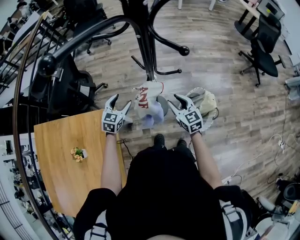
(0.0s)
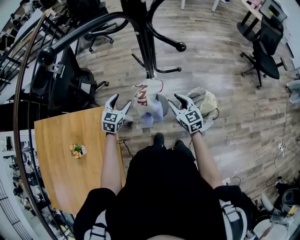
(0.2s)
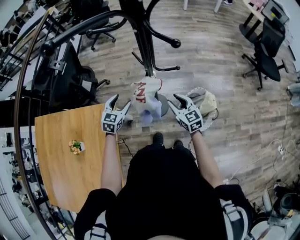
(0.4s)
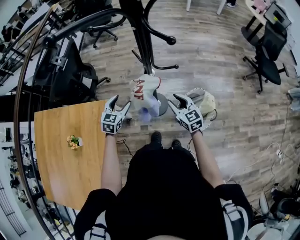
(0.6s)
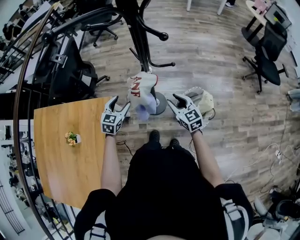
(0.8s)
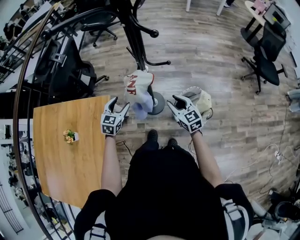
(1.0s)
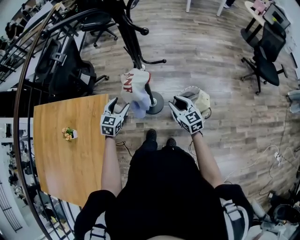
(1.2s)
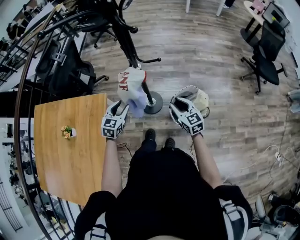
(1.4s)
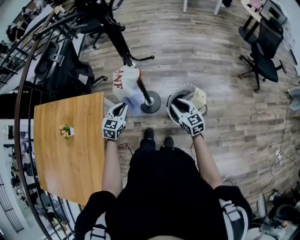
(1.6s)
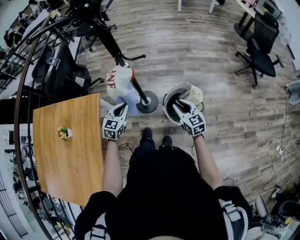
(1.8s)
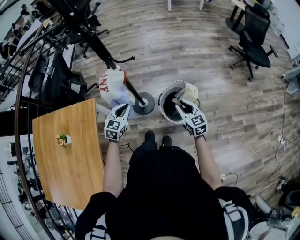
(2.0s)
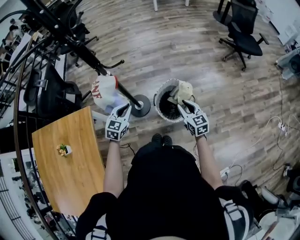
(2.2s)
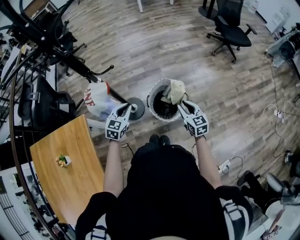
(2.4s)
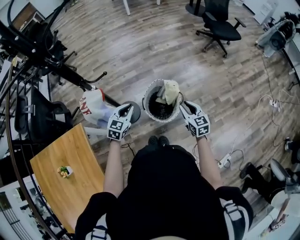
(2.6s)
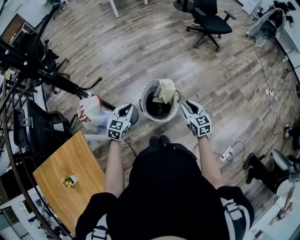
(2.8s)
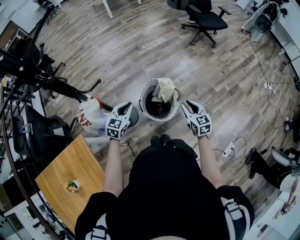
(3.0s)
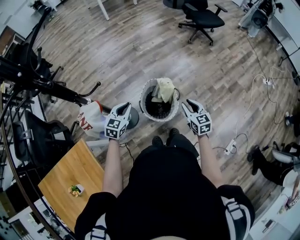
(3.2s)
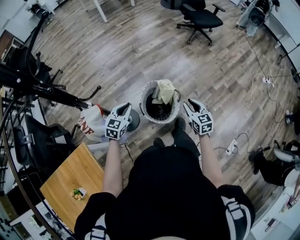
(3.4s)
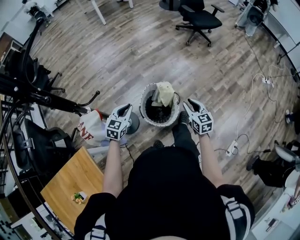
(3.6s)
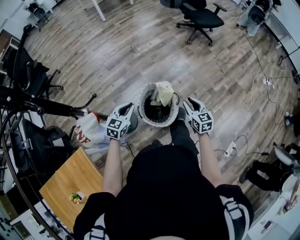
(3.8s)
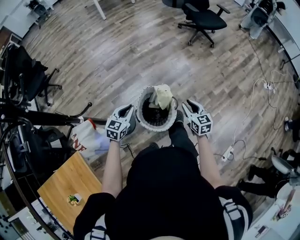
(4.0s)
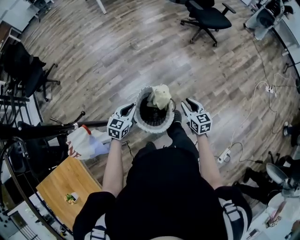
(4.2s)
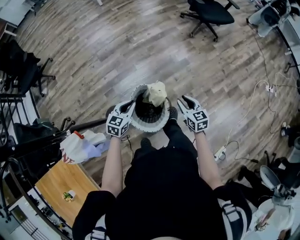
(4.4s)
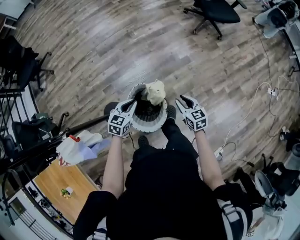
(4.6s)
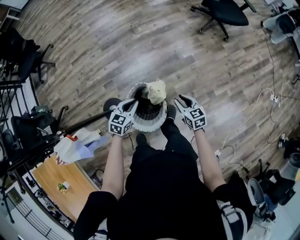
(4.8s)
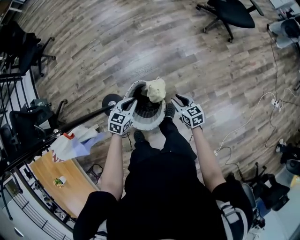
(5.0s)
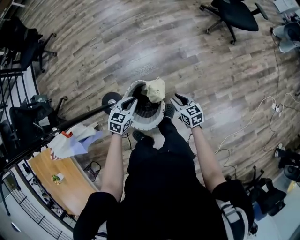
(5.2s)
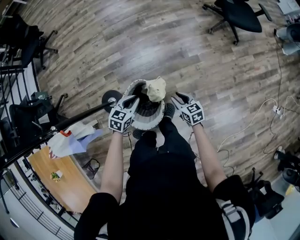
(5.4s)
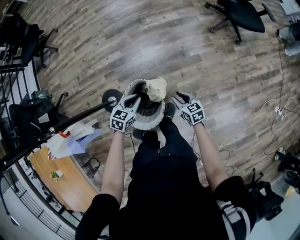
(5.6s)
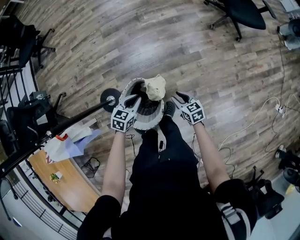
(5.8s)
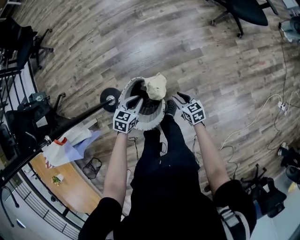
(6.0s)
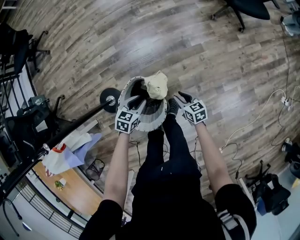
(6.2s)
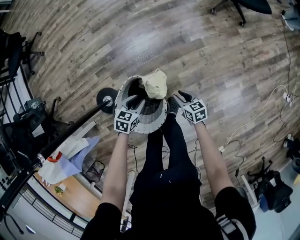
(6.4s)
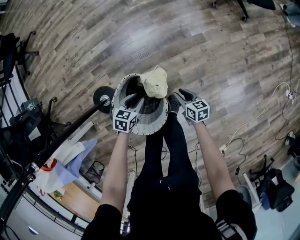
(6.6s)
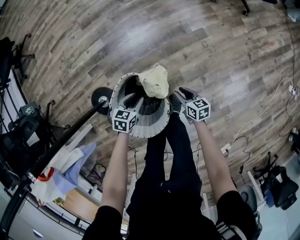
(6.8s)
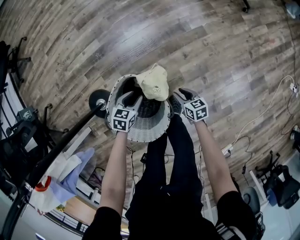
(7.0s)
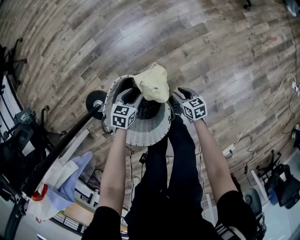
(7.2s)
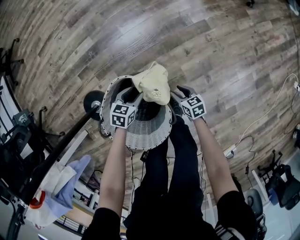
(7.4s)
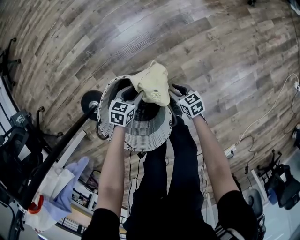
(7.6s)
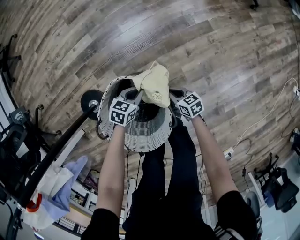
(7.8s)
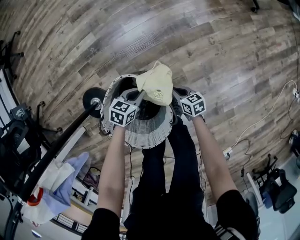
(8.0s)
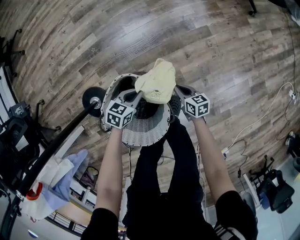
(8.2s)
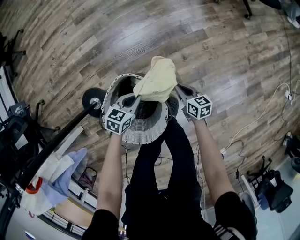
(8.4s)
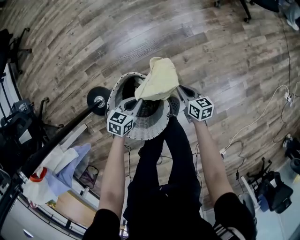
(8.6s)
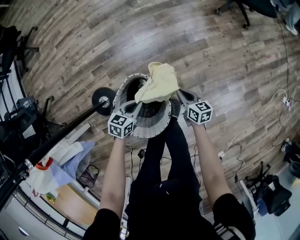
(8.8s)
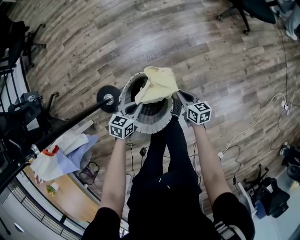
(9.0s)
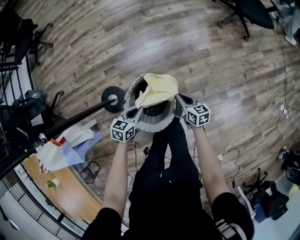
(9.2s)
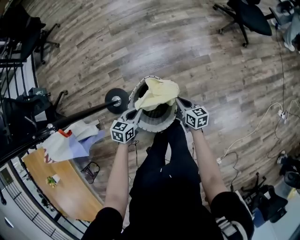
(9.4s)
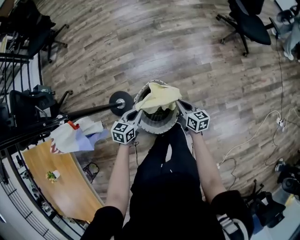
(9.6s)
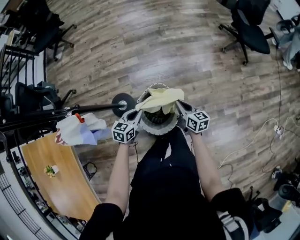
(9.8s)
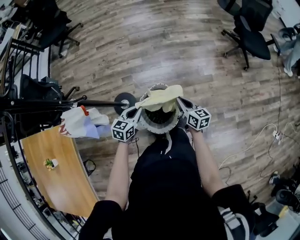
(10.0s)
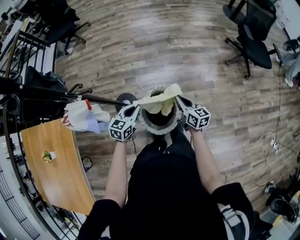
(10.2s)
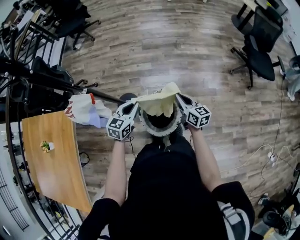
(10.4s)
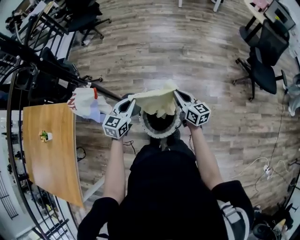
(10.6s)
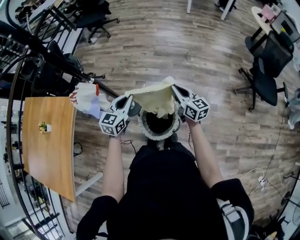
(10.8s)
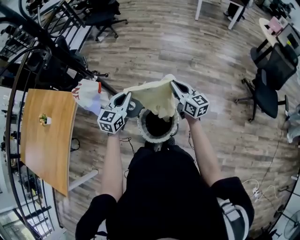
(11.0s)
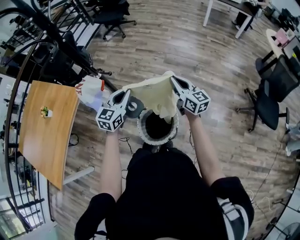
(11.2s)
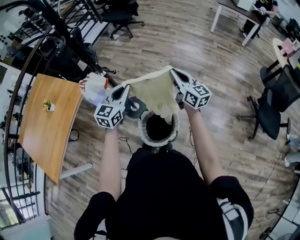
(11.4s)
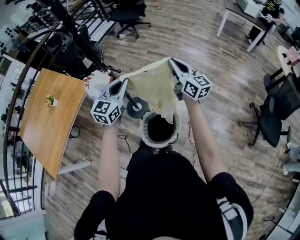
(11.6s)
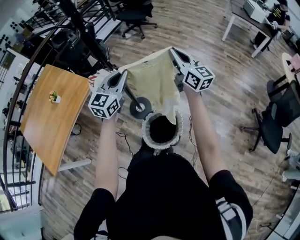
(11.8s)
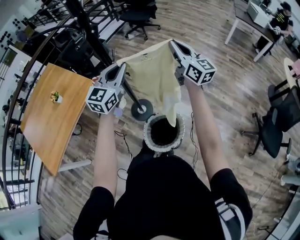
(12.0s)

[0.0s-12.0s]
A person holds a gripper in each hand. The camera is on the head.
0.0s to 1.6s: The right gripper is displaced to the right and backward by about 20 cm, while the left gripper goes some 20 cm backward and to the right, and closes its fingers.
1.6s to 3.0s: The left gripper changes place by approximately 25 cm, and changes its angle by roughly 40 degrees. Meanwhile the right gripper shifts by some 25 cm, and turns by approximately 40 degrees.
3.0s to 4.4s: The left gripper is displaced forward and to the right by about 20 cm, while the right gripper shifts about 20 cm forward.
4.4s to 6.0s: The left gripper heads downward, to the right and forward, covering approximately 20 cm, and swivels roughly 20 degrees; the right gripper travels downward and forward by about 20 cm, and rotates some 30 degrees.
6.0s to 7.6s: Both grippers move downward, about 35 cm. The left gripper opens.
7.6s to 9.0s: The two grippers go approximately 25 cm upward. The right gripper closes up. The left gripper closes.
9.0s to 10.4s: The grippers both shift upward and to the left by roughly 30 cm. The left gripper turns by approximately 30 degrees, while the right gripper swivels roughly 30 degrees.
10.4s to 12.0s: Both grippers move upward, approximately 30 cm. The right gripper changes its angle by about 40 degrees. The left gripper rotates about 40 degrees.

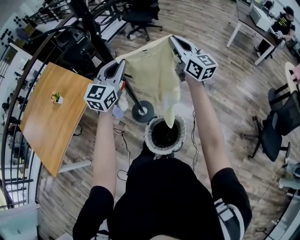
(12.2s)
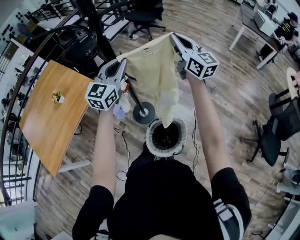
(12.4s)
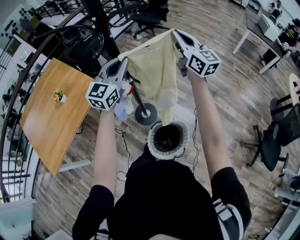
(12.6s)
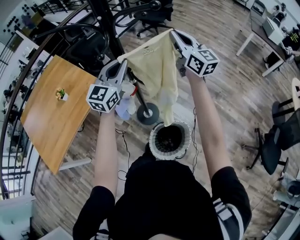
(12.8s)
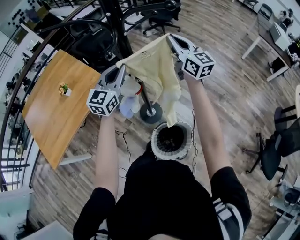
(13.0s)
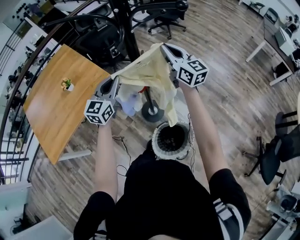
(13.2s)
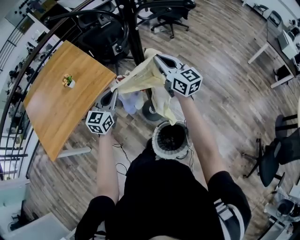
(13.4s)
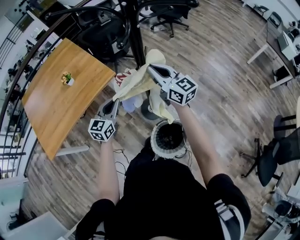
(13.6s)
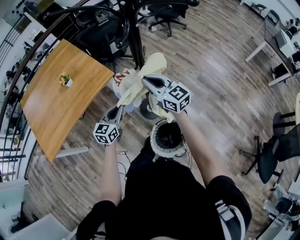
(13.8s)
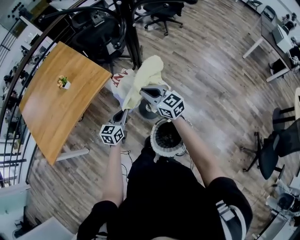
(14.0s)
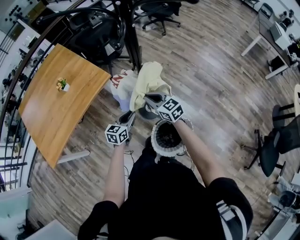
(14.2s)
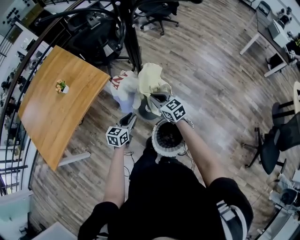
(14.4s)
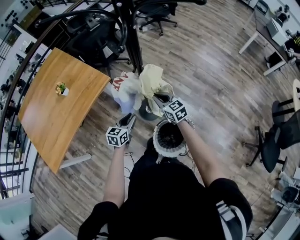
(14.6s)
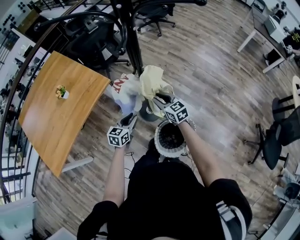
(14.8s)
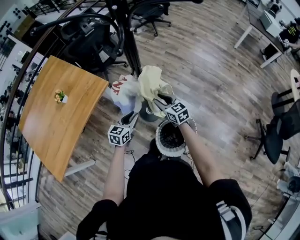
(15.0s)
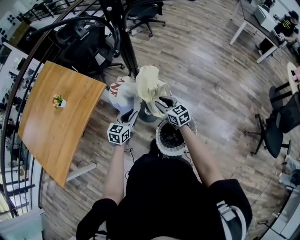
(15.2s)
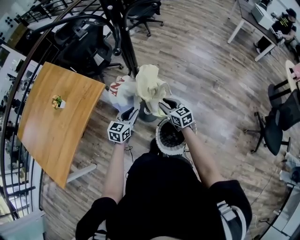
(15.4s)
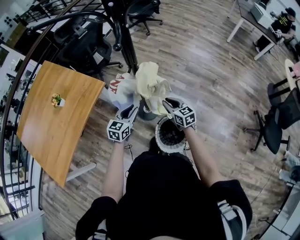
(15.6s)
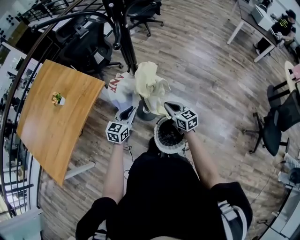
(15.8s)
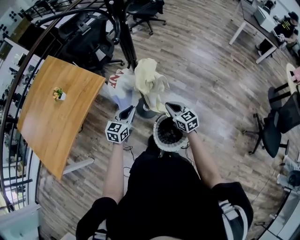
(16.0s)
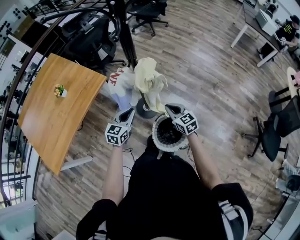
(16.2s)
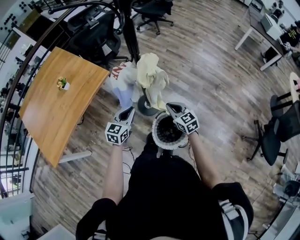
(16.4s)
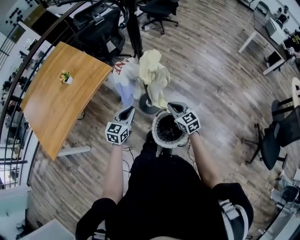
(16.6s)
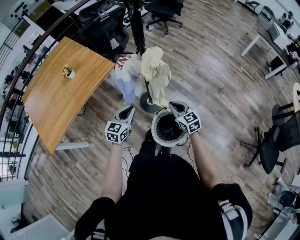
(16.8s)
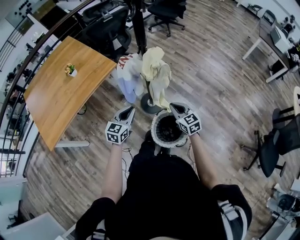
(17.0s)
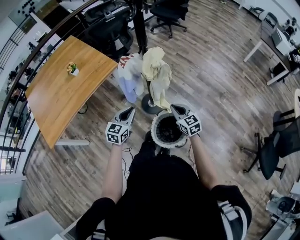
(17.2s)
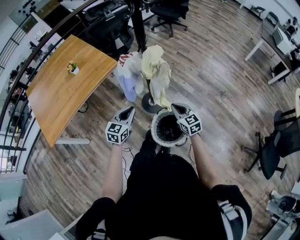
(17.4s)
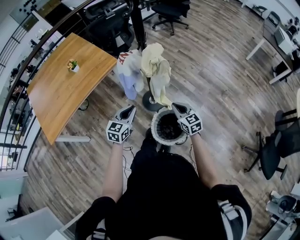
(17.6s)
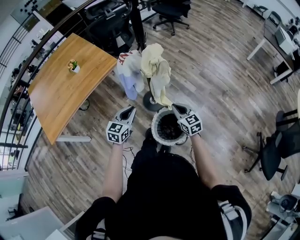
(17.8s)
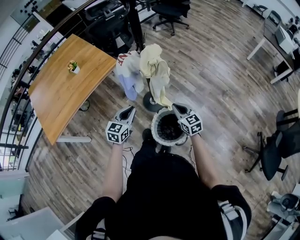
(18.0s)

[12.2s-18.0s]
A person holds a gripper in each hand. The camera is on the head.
12.2s to 13.6s: The grippers both shift to the left and downward by approximately 25 cm. The left gripper turns by approximately 30 degrees, while the right gripper changes its angle by about 30 degrees.
13.6s to 15.0s: The left gripper moves downward, approximately 15 cm, and changes its angle by approximately 20 degrees; the right gripper moves downward, roughly 25 cm, changes its angle by roughly 30 degrees, and opens.
15.0s to 16.6s: The right gripper moves backward and to the right, roughly 15 cm, and closes, while the left gripper is displaced backward and upward by approximately 10 cm.
16.6s to 18.0s: The left gripper travels backward by roughly 5 cm, while the right gripper shifts by some 5 cm.

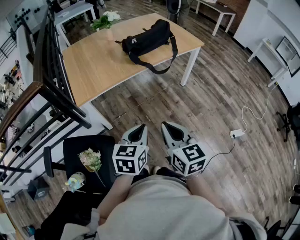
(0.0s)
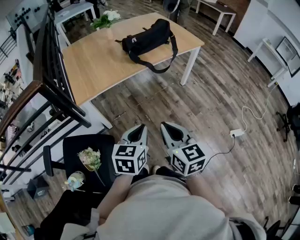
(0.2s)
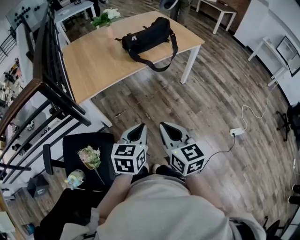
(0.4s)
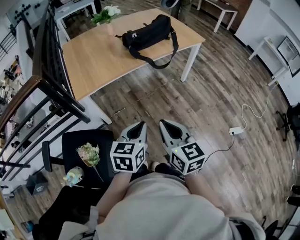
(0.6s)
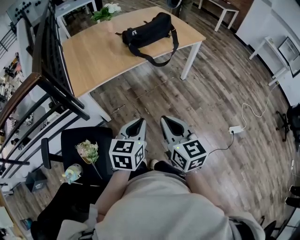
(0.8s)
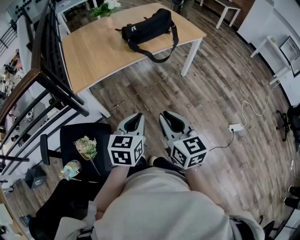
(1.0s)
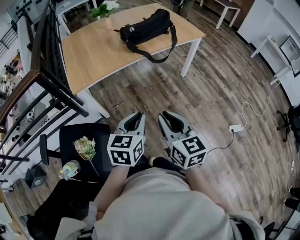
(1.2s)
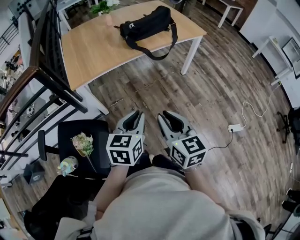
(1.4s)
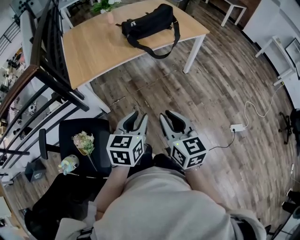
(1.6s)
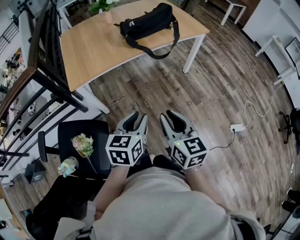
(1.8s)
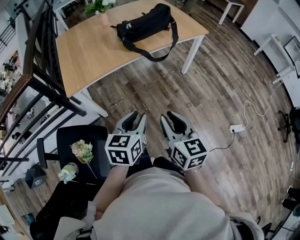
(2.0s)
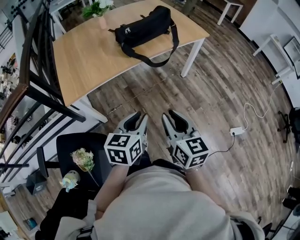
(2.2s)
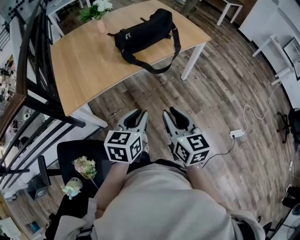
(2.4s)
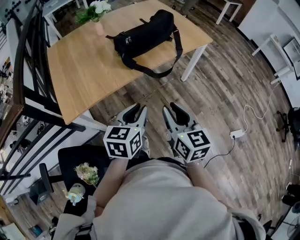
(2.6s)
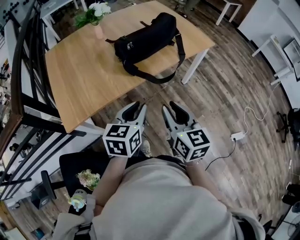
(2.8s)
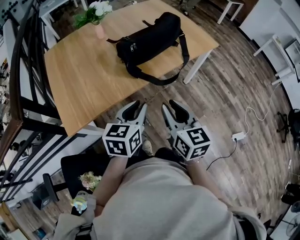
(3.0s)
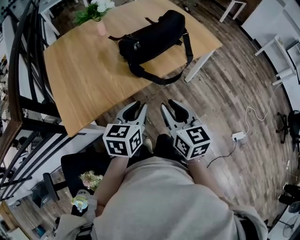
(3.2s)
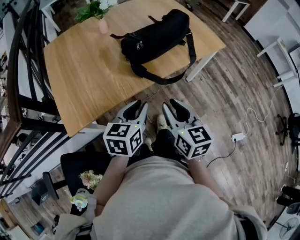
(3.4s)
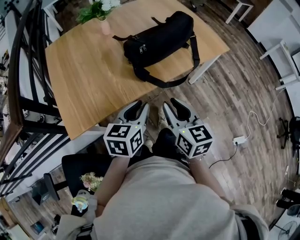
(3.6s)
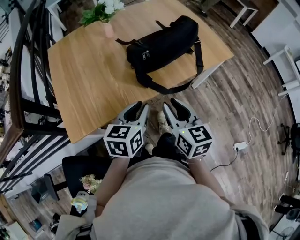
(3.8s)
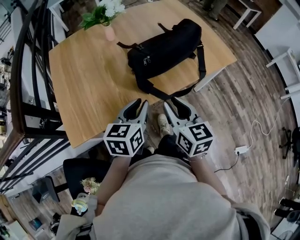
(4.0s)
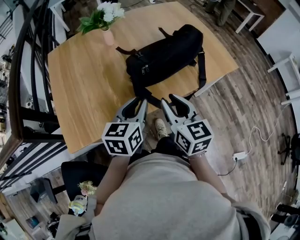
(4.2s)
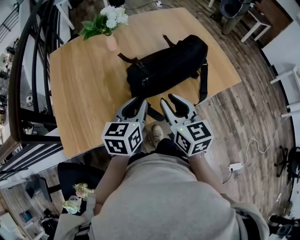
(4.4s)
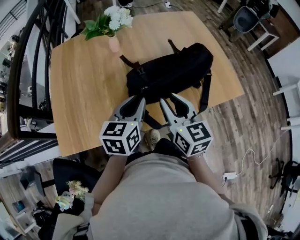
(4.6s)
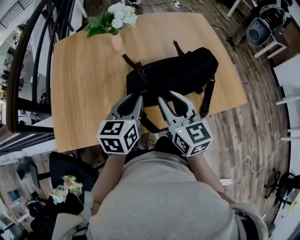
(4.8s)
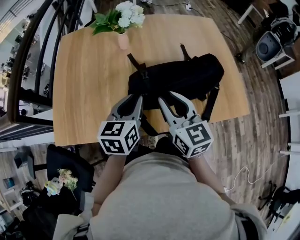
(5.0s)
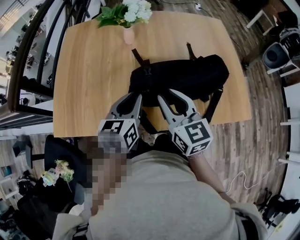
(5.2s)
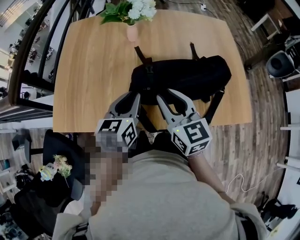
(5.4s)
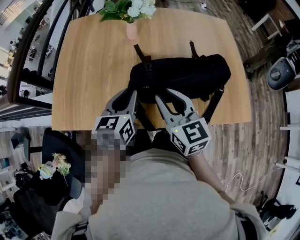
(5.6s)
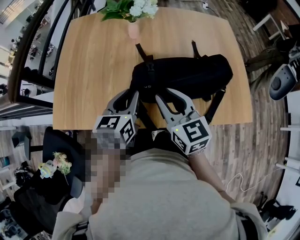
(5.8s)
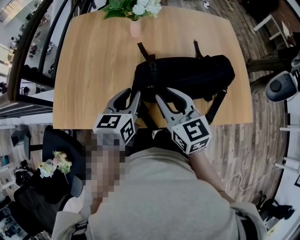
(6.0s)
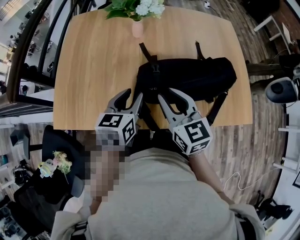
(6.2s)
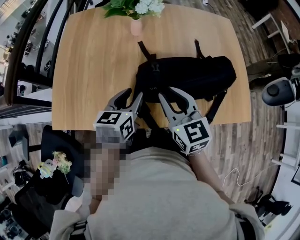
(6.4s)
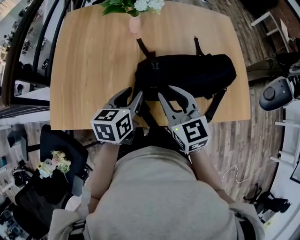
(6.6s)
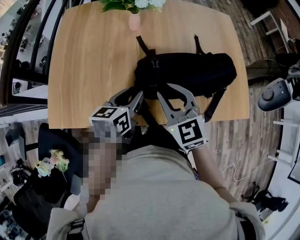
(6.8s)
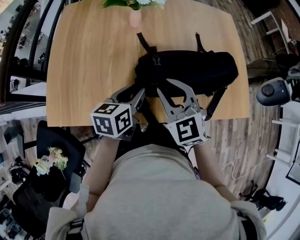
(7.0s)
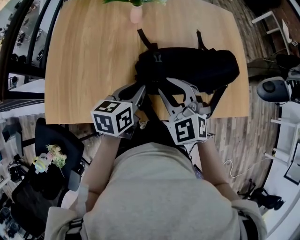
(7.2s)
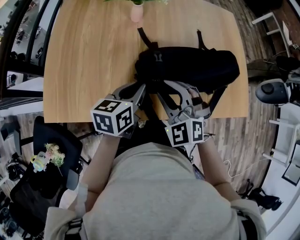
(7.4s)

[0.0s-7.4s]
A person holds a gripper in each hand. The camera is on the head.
0.0s to 1.4s: The grippers move only a little.
1.4s to 3.0s: The grippers both shift forward by approximately 30 cm.
3.0s to 4.4s: The grippers both shift forward by roughly 20 cm.
4.4s to 6.0s: The right gripper ends up about 10 cm from where it was, and changes its angle by roughly 30 degrees; the left gripper moves approximately 5 cm, and rotates approximately 20 degrees.
6.0s to 7.4s: The right gripper rotates around the line of its fingers by about 50 degrees, counterclockwise from behind.
